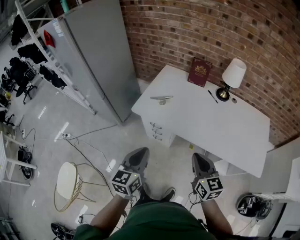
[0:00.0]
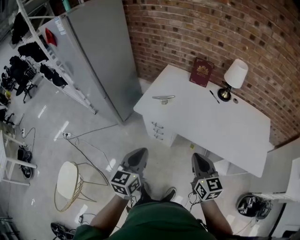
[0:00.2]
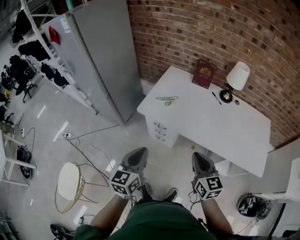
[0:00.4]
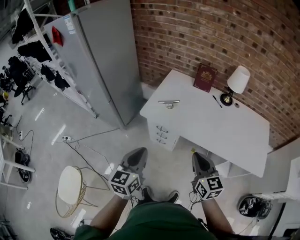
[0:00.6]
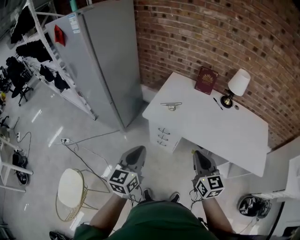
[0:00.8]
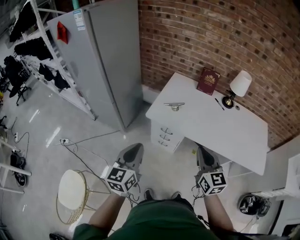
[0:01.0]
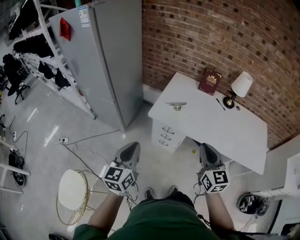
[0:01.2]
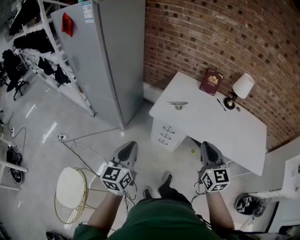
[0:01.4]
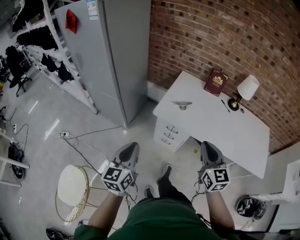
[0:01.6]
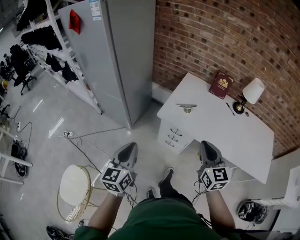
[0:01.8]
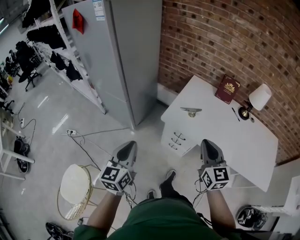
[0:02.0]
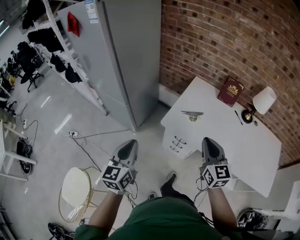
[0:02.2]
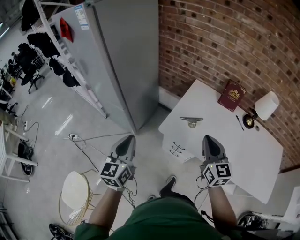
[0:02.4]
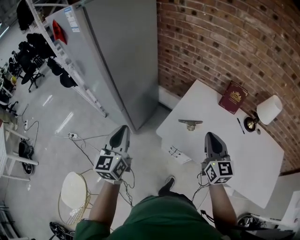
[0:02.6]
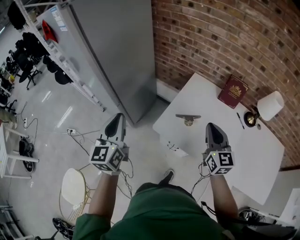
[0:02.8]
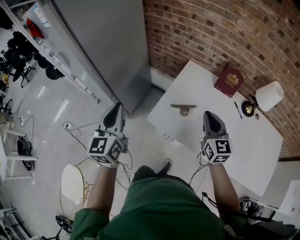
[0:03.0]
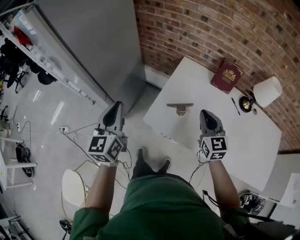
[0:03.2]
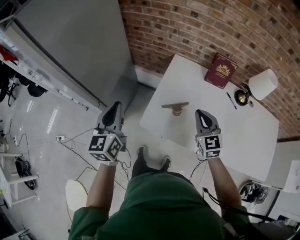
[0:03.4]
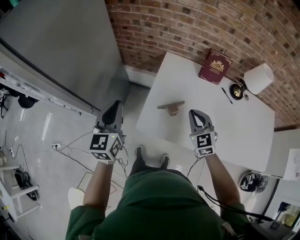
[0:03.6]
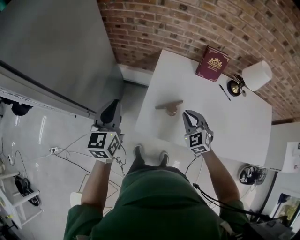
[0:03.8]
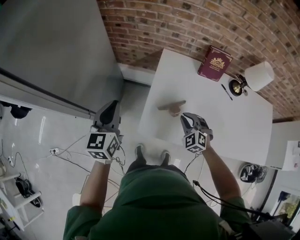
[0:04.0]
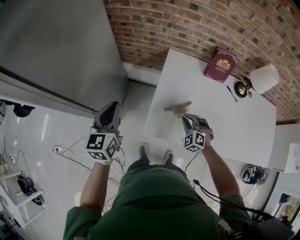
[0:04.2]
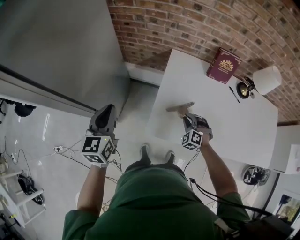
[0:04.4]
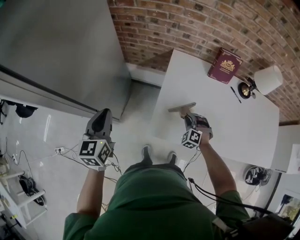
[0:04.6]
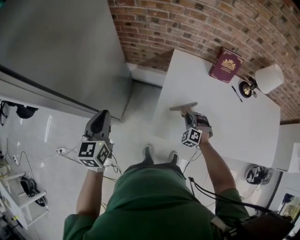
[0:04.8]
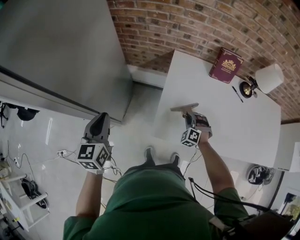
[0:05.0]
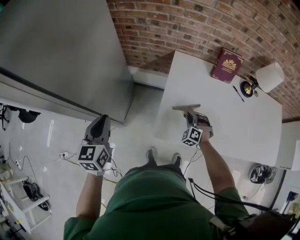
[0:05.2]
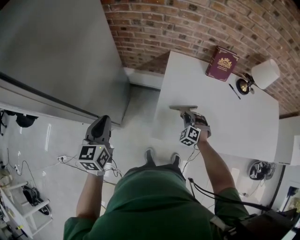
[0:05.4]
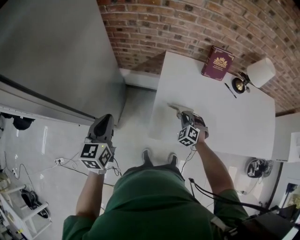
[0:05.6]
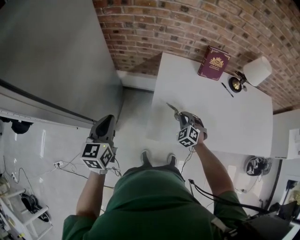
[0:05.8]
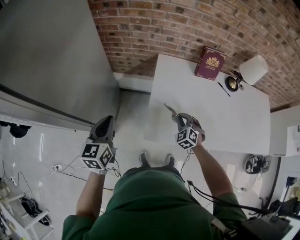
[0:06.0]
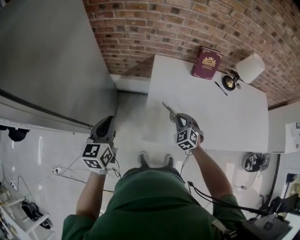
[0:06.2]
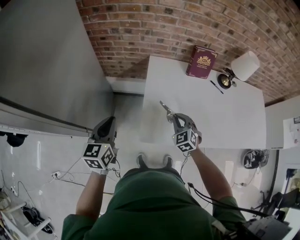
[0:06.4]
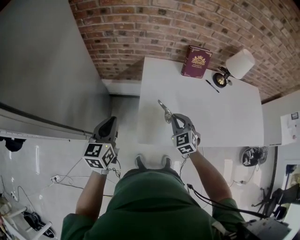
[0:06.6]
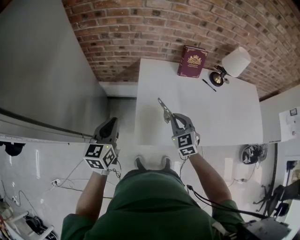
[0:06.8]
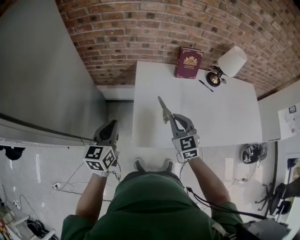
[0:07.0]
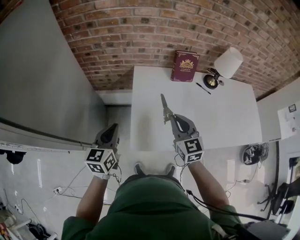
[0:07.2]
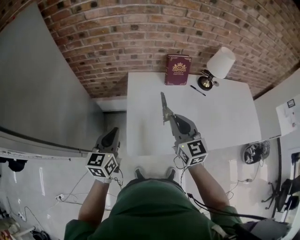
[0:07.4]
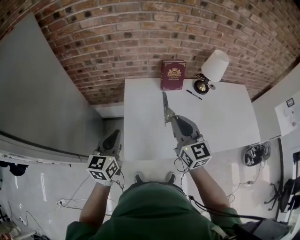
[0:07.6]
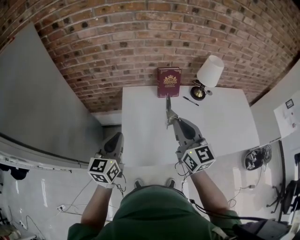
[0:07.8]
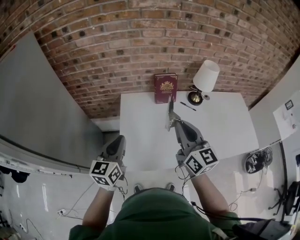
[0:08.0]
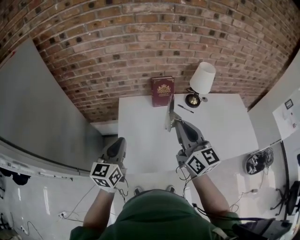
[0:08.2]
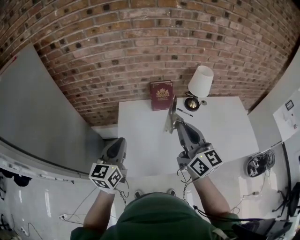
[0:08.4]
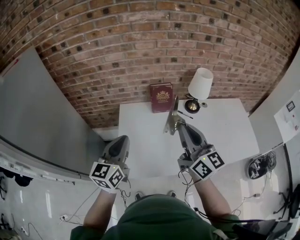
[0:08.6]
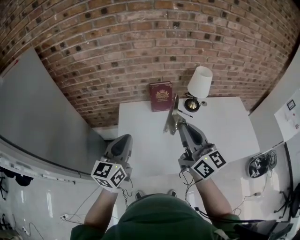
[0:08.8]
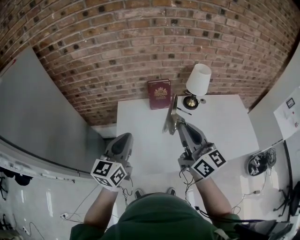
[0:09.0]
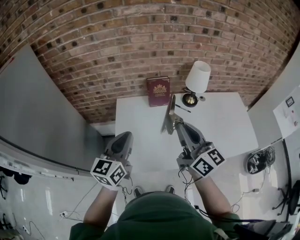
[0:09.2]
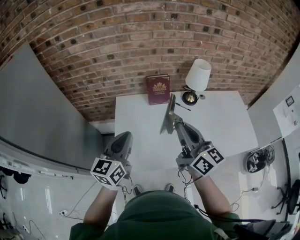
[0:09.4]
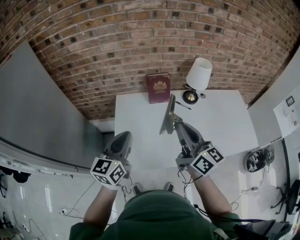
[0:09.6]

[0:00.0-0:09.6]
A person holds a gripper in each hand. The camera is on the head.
0:00.0 to 0:01.6: The grippers both shift to the left by approximately 20 cm.
0:01.6 to 0:03.2: The two grippers go about 35 cm forward.
0:03.2 to 0:04.8: The left gripper shifts approximately 20 cm forward, to the left and downward; the right gripper travels downward by roughly 25 cm, and turns by approximately 60 degrees.
0:04.8 to 0:06.4: The right gripper travels upward by about 10 cm, and changes its angle by approximately 30 degrees. Meanwhile the left gripper travels to the right by approximately 5 cm.
0:06.4 to 0:08.0: The left gripper goes roughly 20 cm to the right and upward. The right gripper goes some 35 cm upward and to the right, and angles its fingers upward, by some 40 degrees.
0:08.0 to 0:09.6: The right gripper goes roughly 5 cm to the right. Meanwhile the left gripper goes about 10 cm to the right.

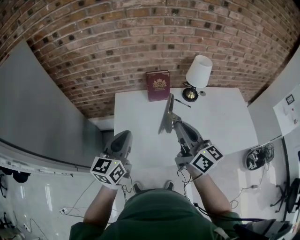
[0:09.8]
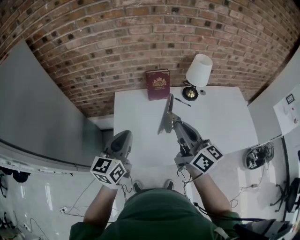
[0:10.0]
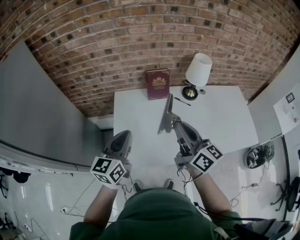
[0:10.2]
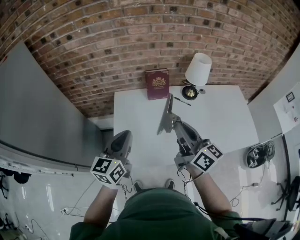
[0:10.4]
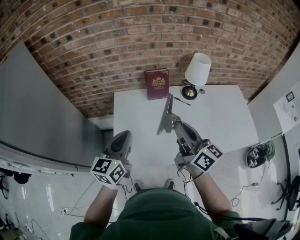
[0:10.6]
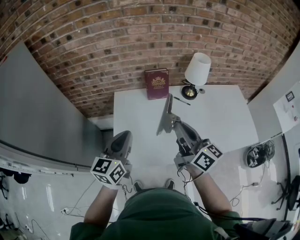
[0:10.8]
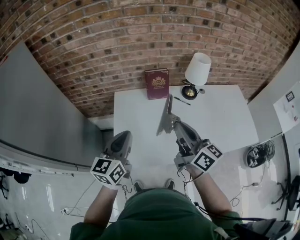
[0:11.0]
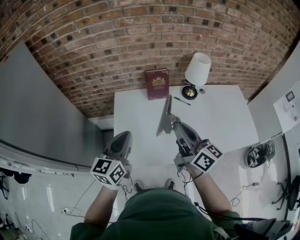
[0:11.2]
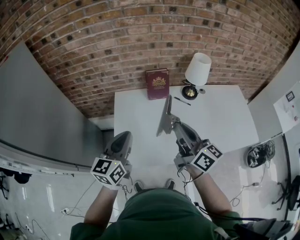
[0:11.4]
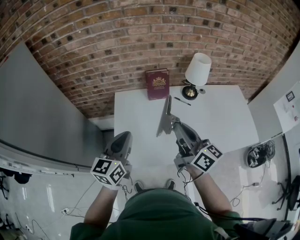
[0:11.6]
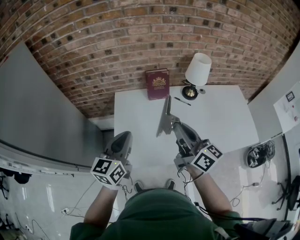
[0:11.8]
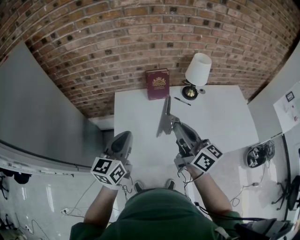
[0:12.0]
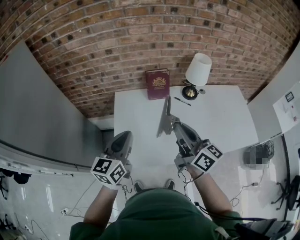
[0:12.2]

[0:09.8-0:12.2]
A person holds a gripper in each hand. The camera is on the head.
0:09.8 to 0:11.0: The grippers stay close to where they were, moving slightly.
0:11.0 to 0:12.2: Neither gripper changes place.

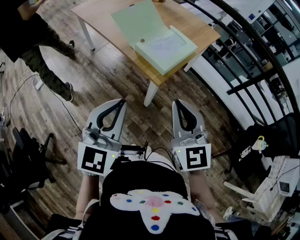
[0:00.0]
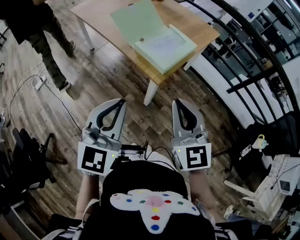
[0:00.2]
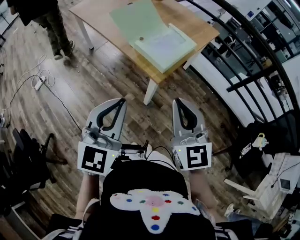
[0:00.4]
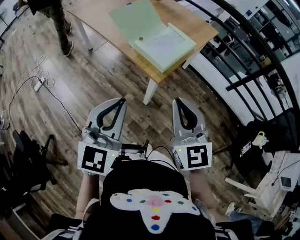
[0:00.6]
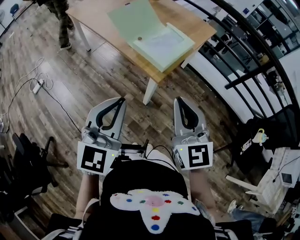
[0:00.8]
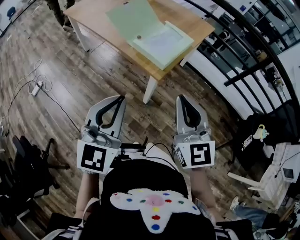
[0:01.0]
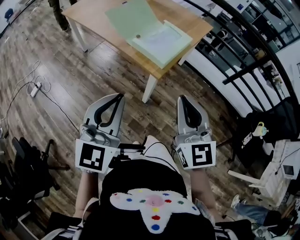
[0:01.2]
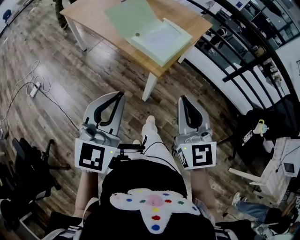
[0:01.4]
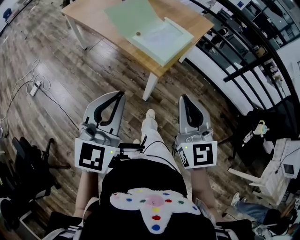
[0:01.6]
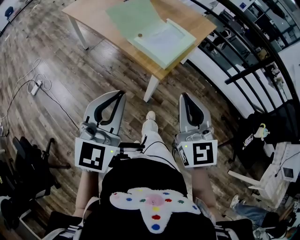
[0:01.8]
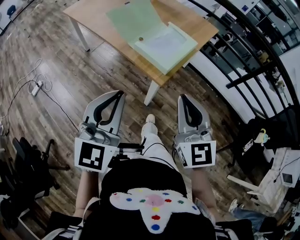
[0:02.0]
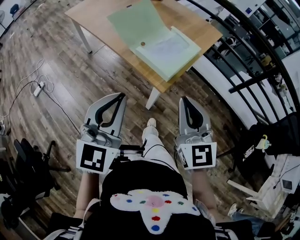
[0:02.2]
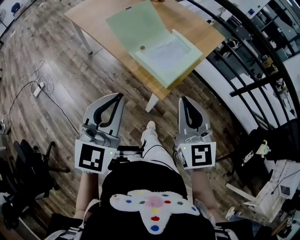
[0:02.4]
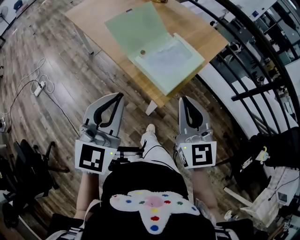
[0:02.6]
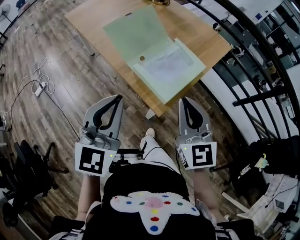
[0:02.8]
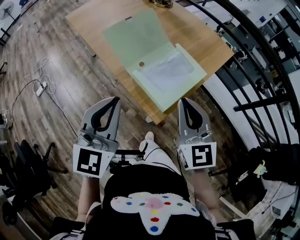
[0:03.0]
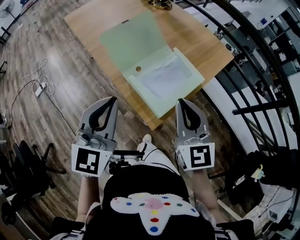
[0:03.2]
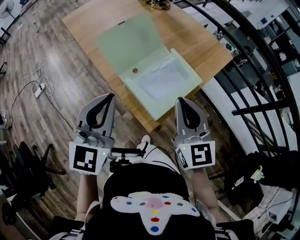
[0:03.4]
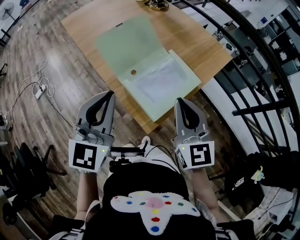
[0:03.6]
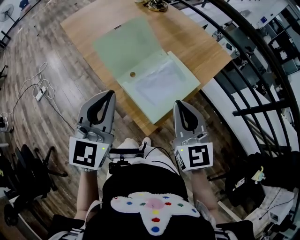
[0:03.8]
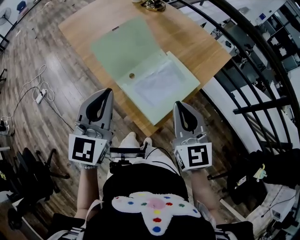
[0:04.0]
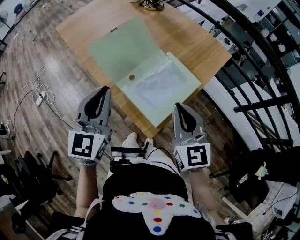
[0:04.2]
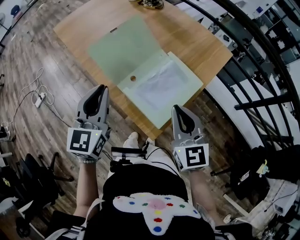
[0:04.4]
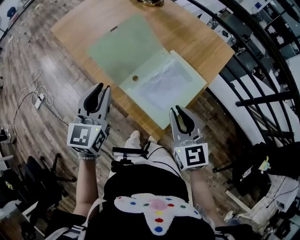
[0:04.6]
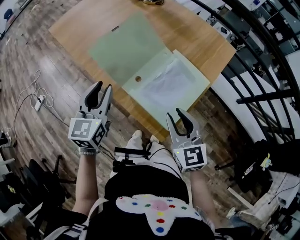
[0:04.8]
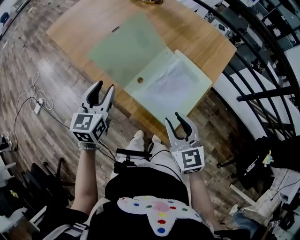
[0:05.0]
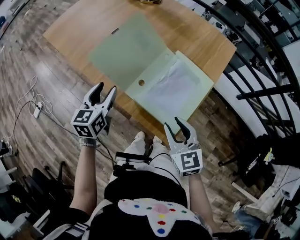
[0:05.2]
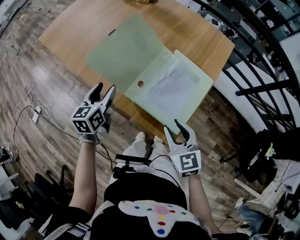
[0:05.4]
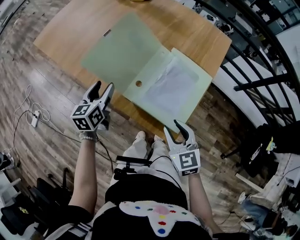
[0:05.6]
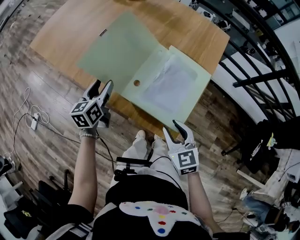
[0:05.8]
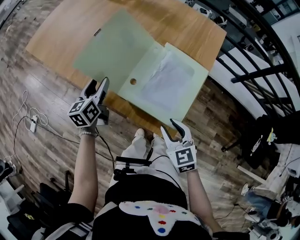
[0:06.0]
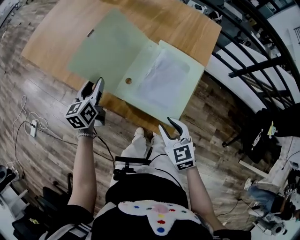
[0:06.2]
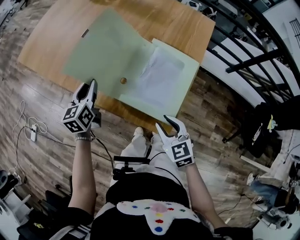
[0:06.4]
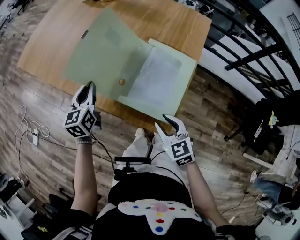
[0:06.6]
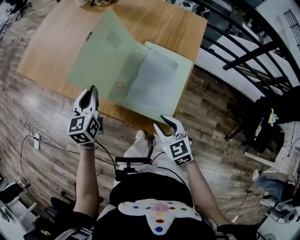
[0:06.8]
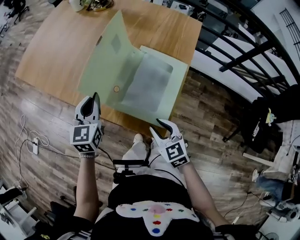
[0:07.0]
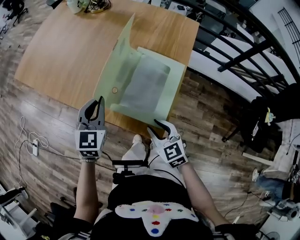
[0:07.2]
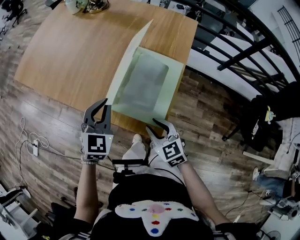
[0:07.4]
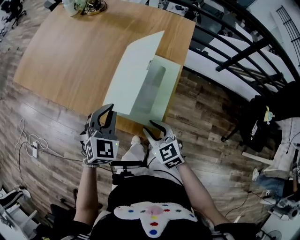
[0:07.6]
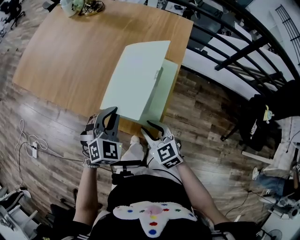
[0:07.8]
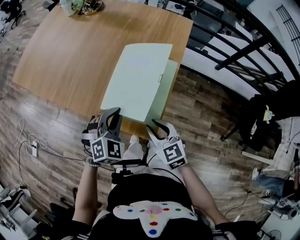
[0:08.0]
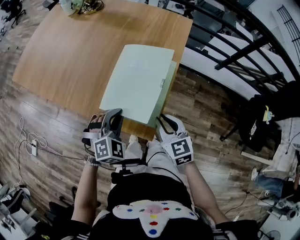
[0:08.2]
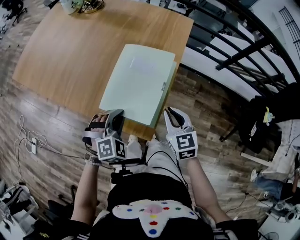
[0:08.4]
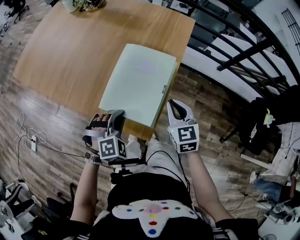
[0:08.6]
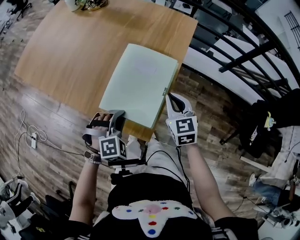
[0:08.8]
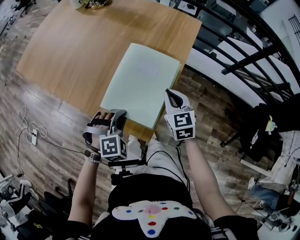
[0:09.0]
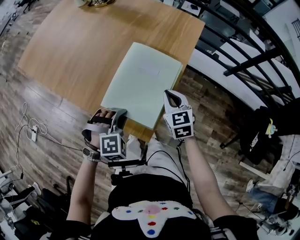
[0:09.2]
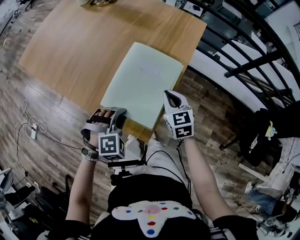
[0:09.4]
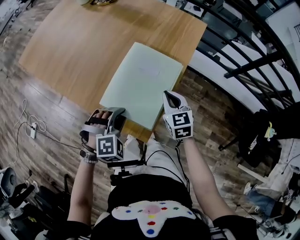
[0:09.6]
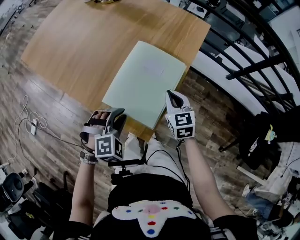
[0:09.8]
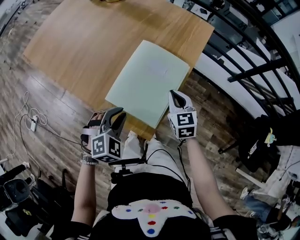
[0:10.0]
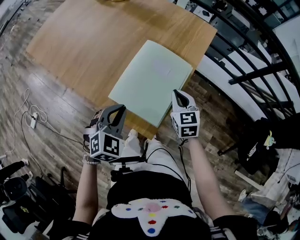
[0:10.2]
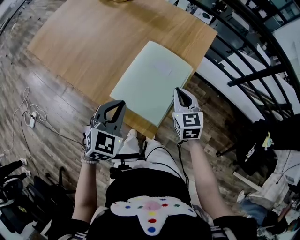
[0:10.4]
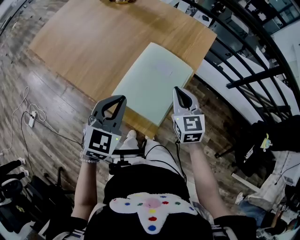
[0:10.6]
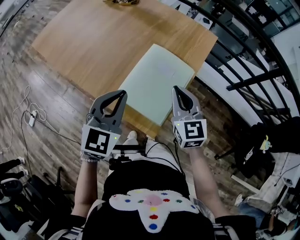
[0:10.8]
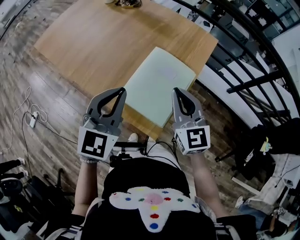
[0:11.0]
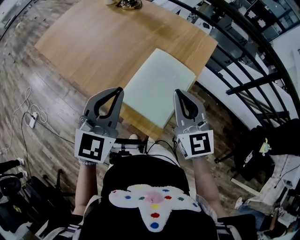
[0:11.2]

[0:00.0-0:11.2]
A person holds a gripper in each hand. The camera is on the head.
0:00.0 to 0:01.6: There are only small adjustments of the grippers.
0:01.6 to 0:03.2: Both grippers travel together forward, about 30 cm.
0:03.2 to 0:04.8: The left gripper moves forward and downward, approximately 20 cm, and opens its fingers, while the right gripper heads downward and forward, covering some 10 cm, and opens.
0:04.8 to 0:06.4: The left gripper is displaced downward and forward by approximately 15 cm, and opens, then closes again. Meanwhile the right gripper goes some 10 cm downward.
0:06.4 to 0:08.0: The left gripper heads to the right and backward, covering about 25 cm, and twists some 70 degrees clockwise, seen from behind.
0:08.0 to 0:09.6: The left gripper shifts by roughly 5 cm, and rotates some 20 degrees. The right gripper heads forward and to the right, covering approximately 15 cm, and closes up.
0:09.6 to 0:11.2: The grippers both shift upward by some 20 cm. The left gripper angles its fingers upward, by approximately 40 degrees, while the right gripper rotates approximately 30 degrees.
